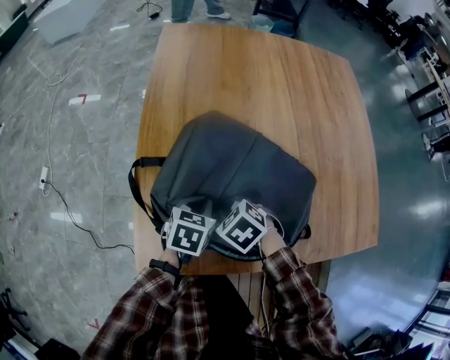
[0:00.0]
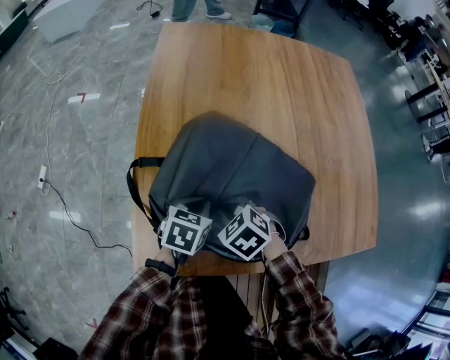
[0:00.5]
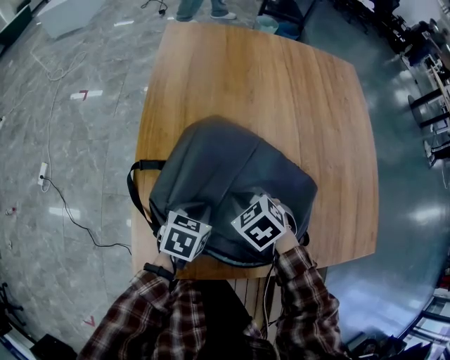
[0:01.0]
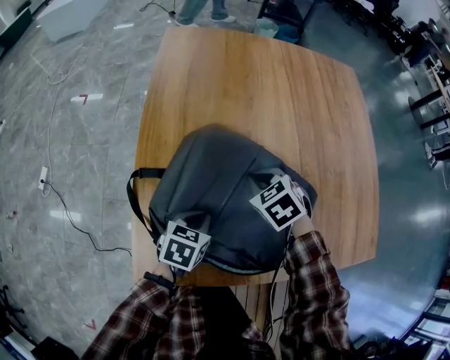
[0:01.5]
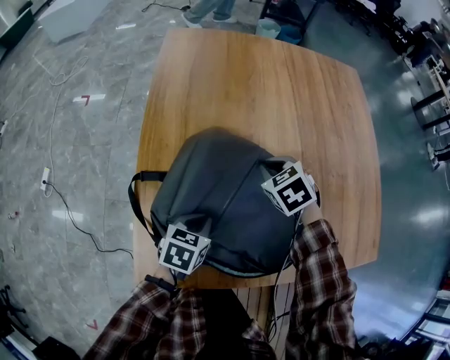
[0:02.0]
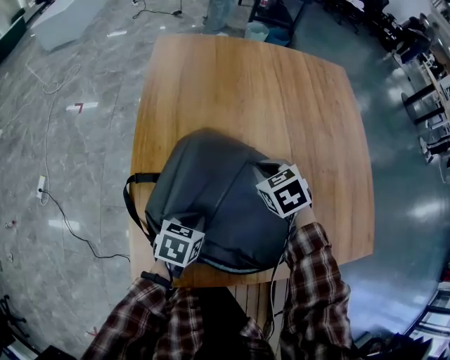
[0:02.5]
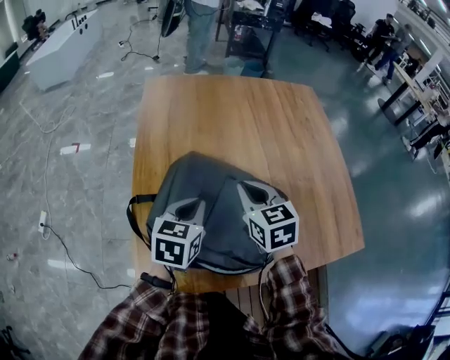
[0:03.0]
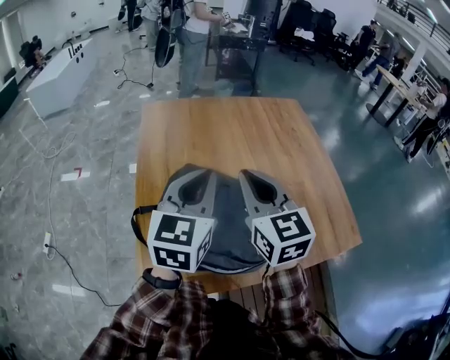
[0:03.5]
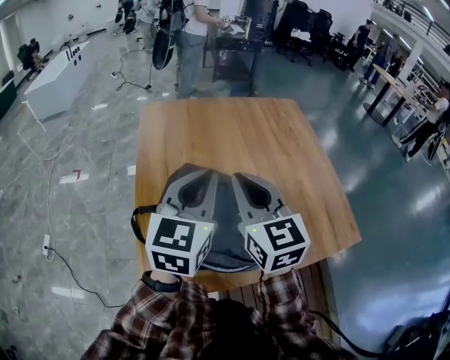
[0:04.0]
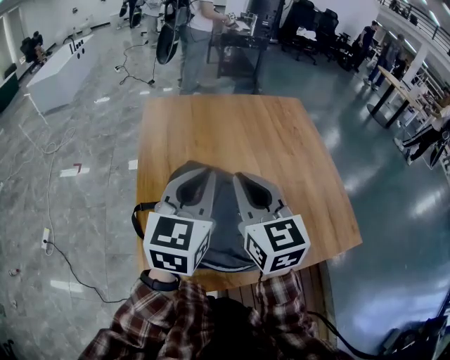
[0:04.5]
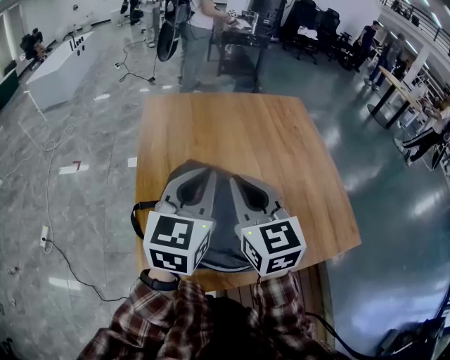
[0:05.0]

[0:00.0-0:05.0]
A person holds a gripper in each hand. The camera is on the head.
0:00.0 to 0:02.5: The right gripper moves forward, to the right and upward, some 20 cm, and swivels some 20 degrees.
0:02.5 to 0:05.0: The right gripper heads upward and backward, covering approximately 30 cm, and tips its fingers upward by about 50 degrees; the left gripper goes about 35 cm upward, and tilts its fingers some 40 degrees upward.

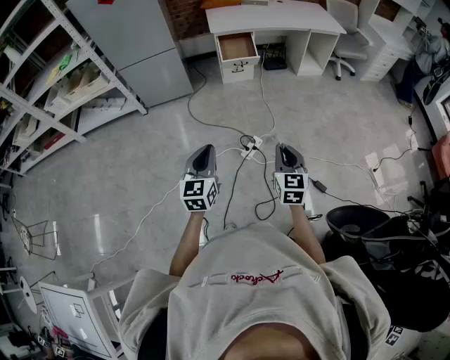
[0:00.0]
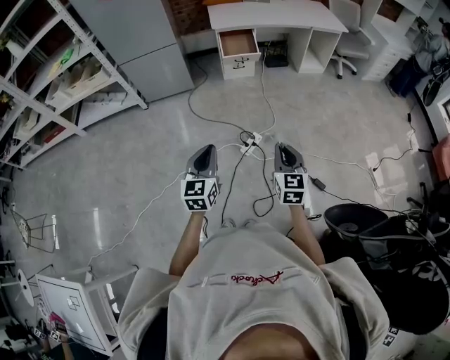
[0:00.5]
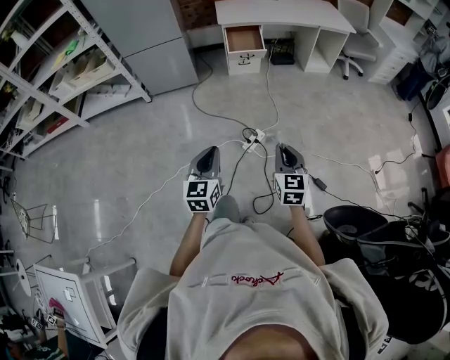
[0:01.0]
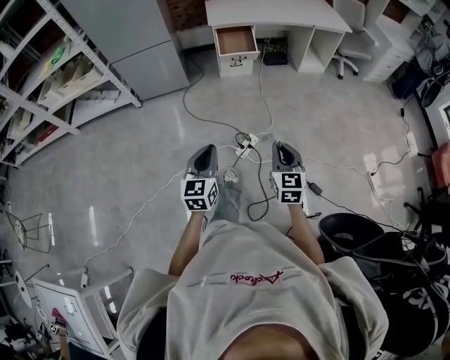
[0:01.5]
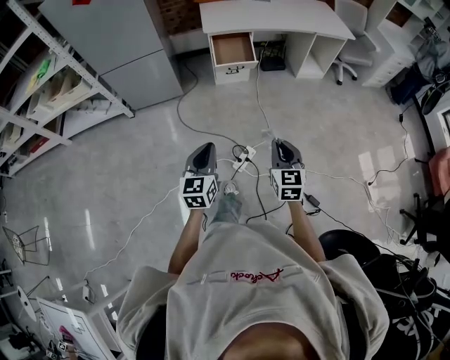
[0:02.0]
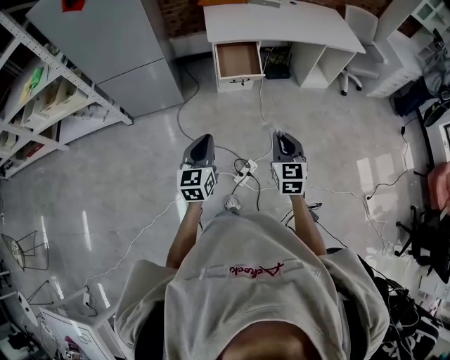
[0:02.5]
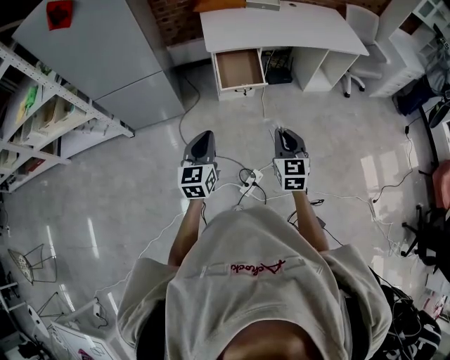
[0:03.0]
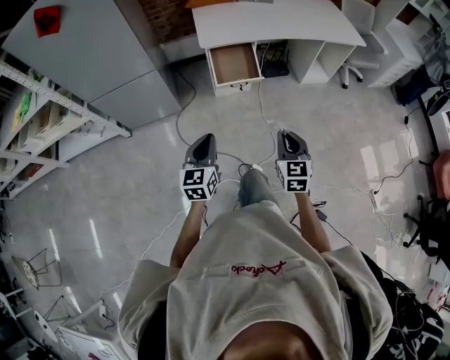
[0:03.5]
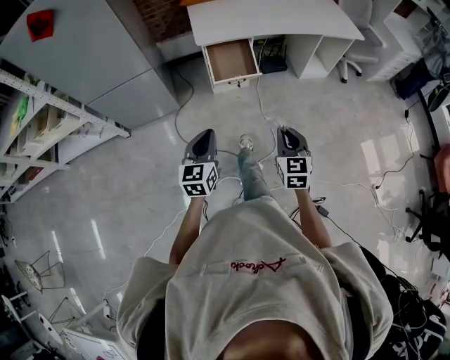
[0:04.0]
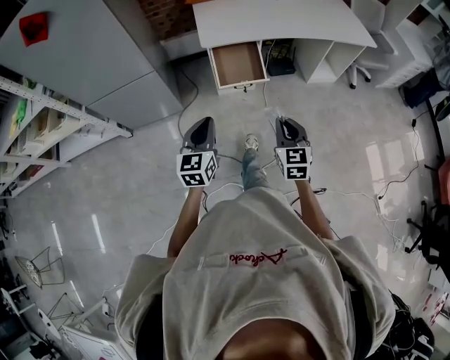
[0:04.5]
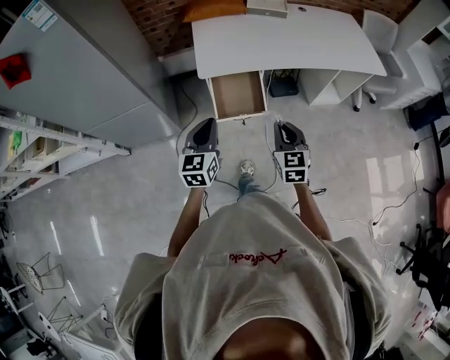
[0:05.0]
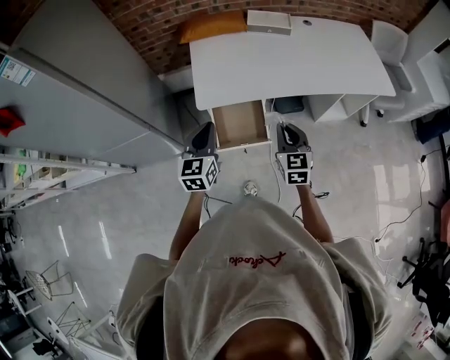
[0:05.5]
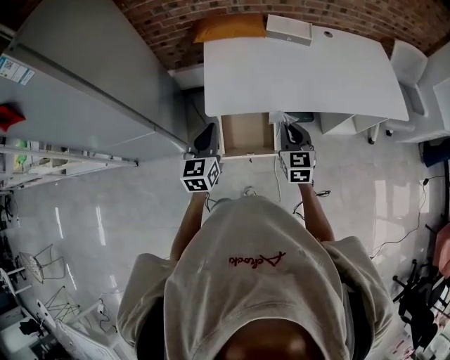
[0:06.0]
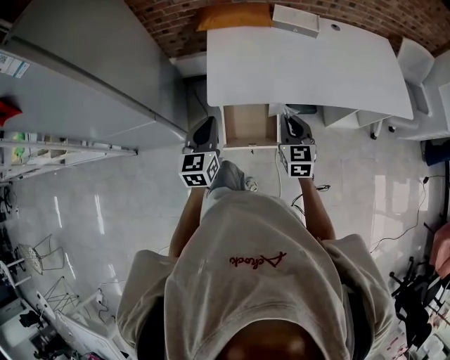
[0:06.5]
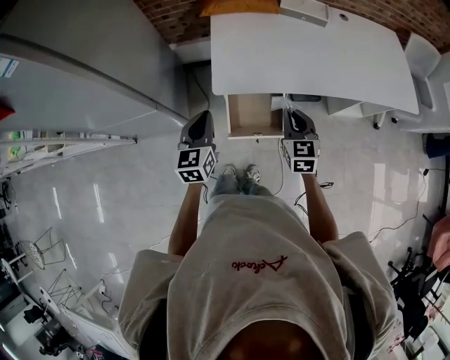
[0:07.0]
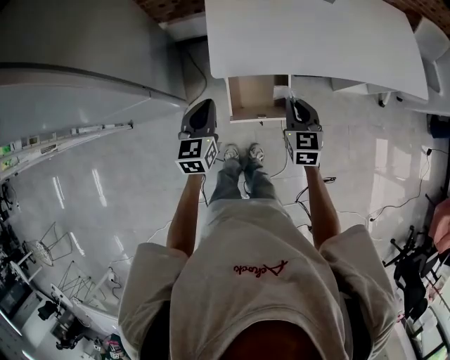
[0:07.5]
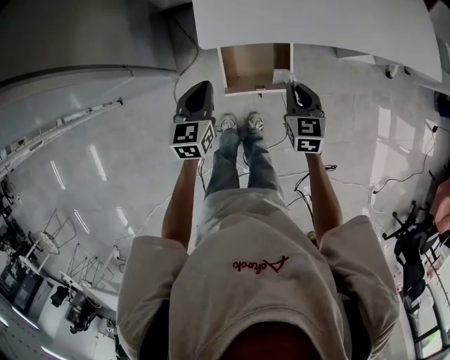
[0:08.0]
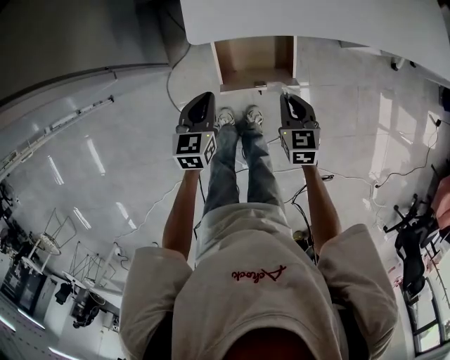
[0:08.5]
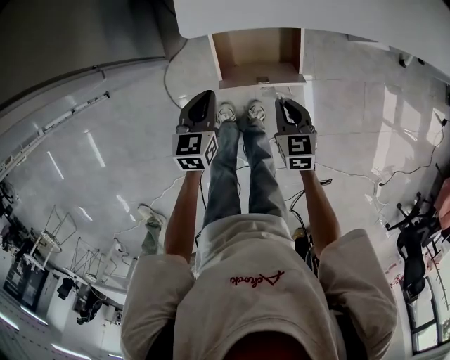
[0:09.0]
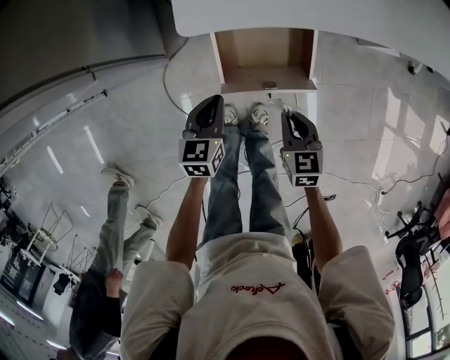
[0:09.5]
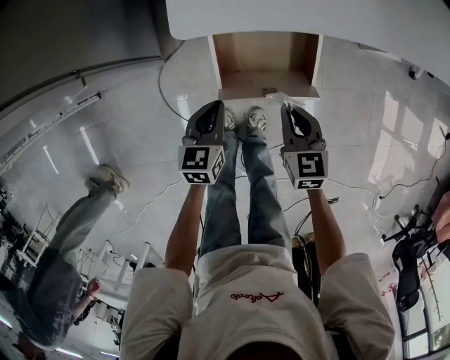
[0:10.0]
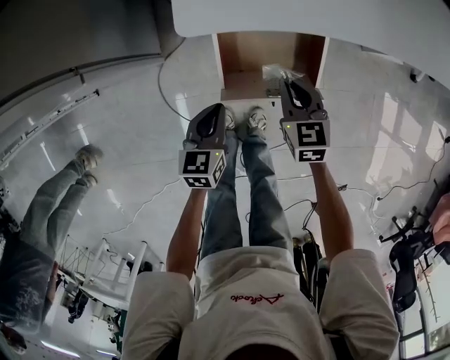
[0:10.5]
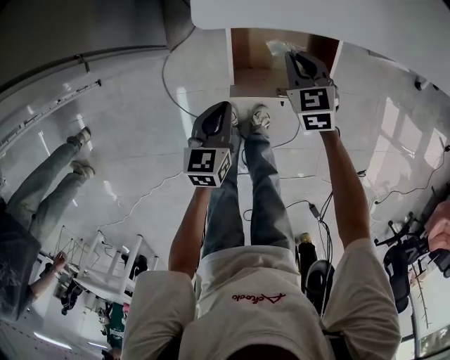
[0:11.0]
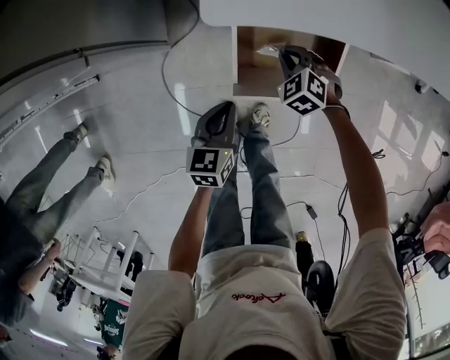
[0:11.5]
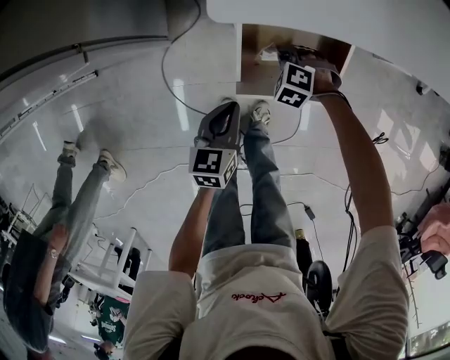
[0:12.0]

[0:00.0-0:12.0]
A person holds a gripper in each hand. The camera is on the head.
0:00.0 to 0:02.0: The two grippers go approximately 20 cm forward.
0:02.0 to 0:04.0: Both grippers travel together forward, approximately 25 cm.
0:04.0 to 0:06.0: The pair of grippers is taken forward, approximately 50 cm.
0:06.0 to 0:08.0: The two grippers go some 15 cm downward.
0:08.0 to 0:10.0: The grippers both shift downward by about 20 cm.
0:10.0 to 0:12.0: The right gripper shifts approximately 20 cm downward and forward, and rotates around the line of its fingers by approximately 70 degrees, counterclockwise from behind.

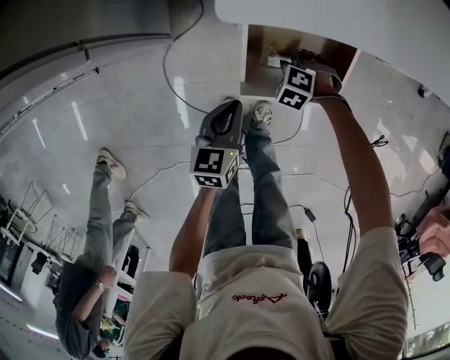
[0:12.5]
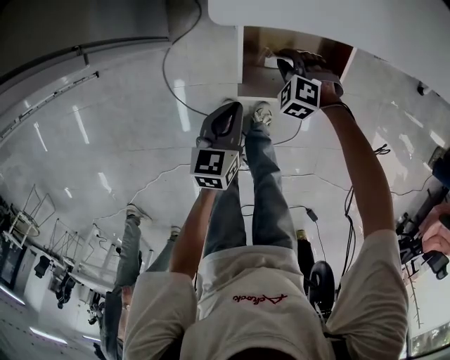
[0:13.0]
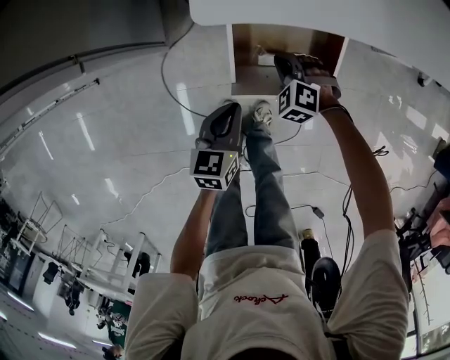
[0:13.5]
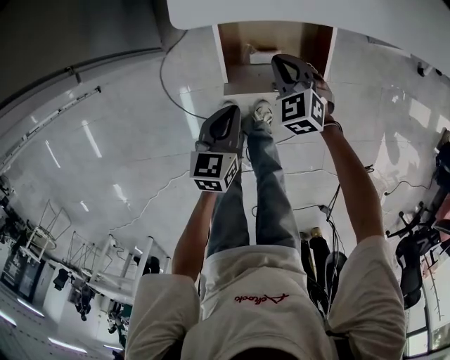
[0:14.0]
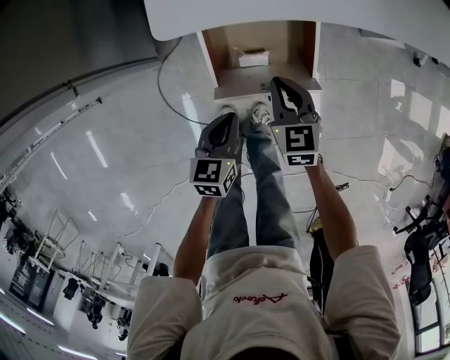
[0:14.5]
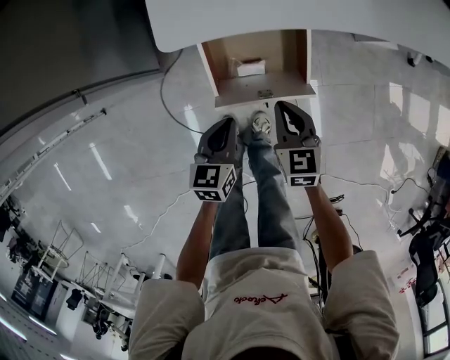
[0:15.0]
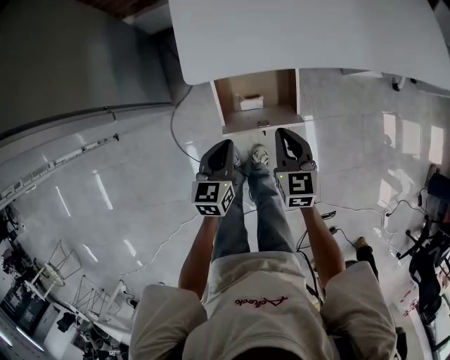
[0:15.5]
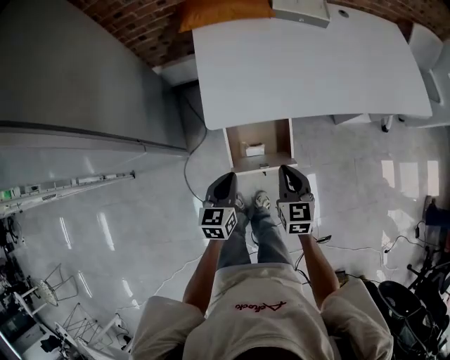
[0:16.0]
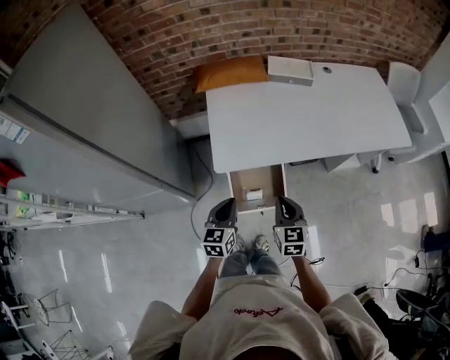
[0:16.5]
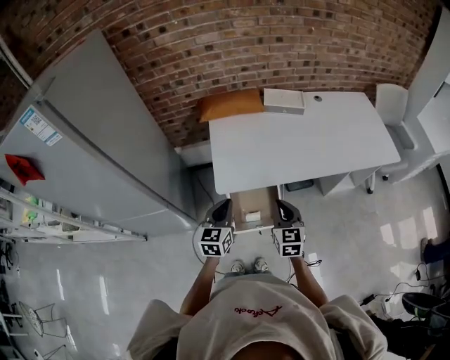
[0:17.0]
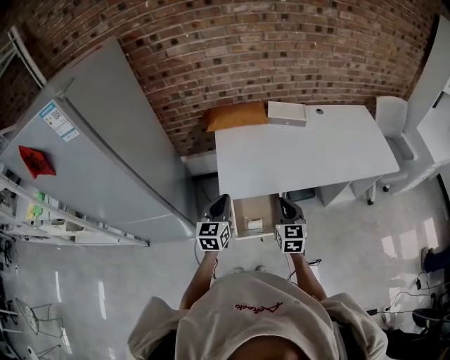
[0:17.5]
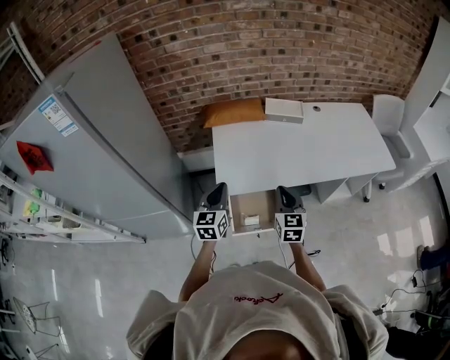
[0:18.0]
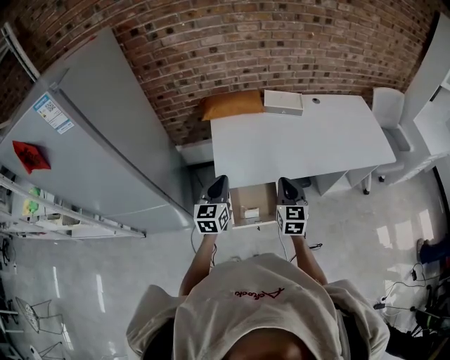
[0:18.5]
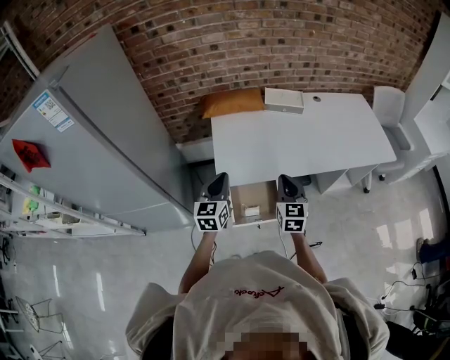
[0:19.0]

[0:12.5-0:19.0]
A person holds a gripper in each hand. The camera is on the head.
0:12.5 to 0:14.5: The left gripper ends up about 5 cm from where it was; the right gripper goes roughly 15 cm upward, and rolls clockwise, seen from behind, by about 60 degrees.
0:14.5 to 0:17.0: The two grippers go some 35 cm upward. The left gripper changes its angle by roughly 30 degrees. The right gripper rotates approximately 20 degrees.
0:17.0 to 0:19.0: Both grippers move upward, roughly 5 cm.

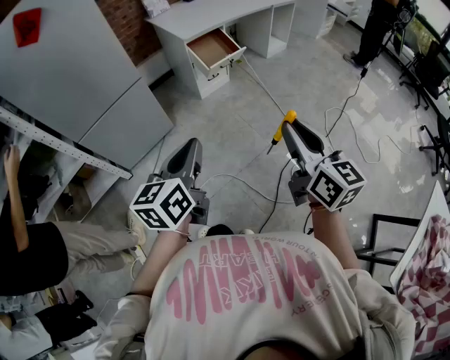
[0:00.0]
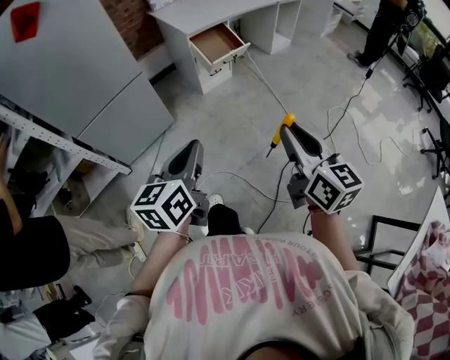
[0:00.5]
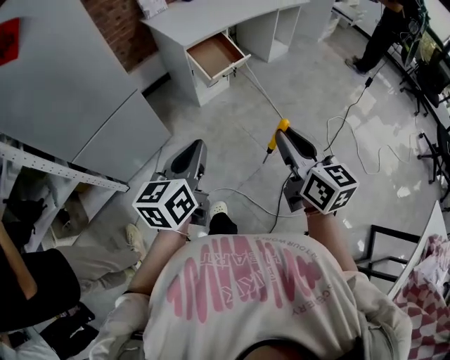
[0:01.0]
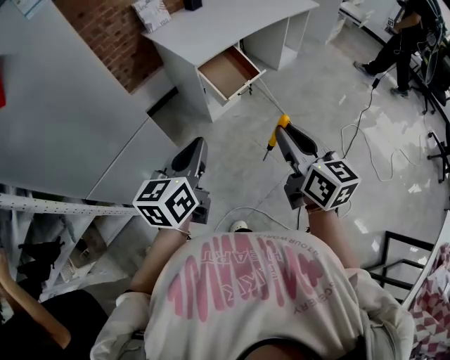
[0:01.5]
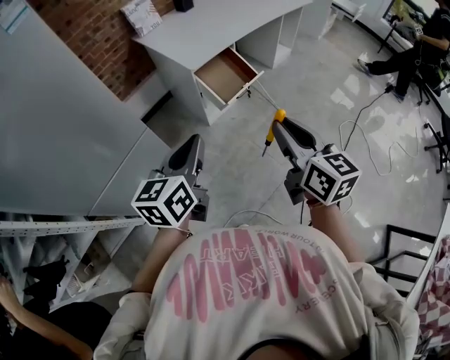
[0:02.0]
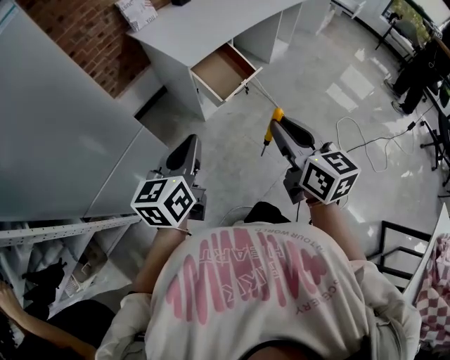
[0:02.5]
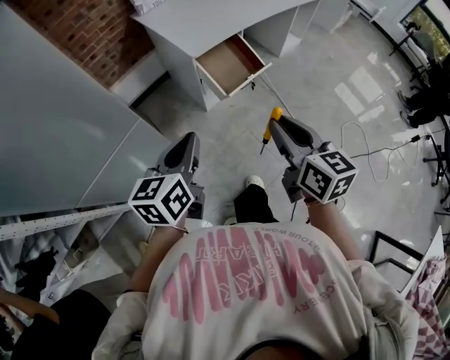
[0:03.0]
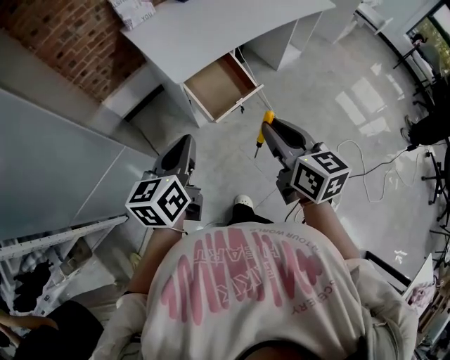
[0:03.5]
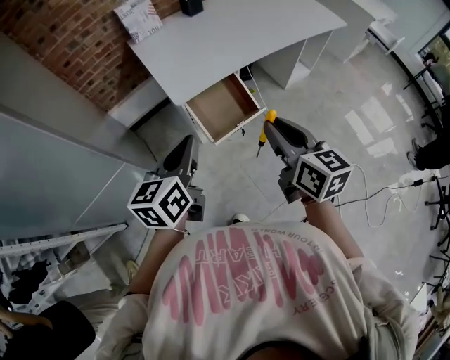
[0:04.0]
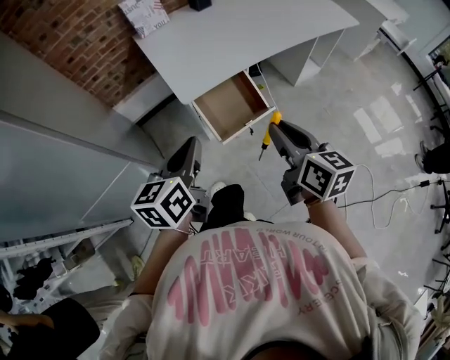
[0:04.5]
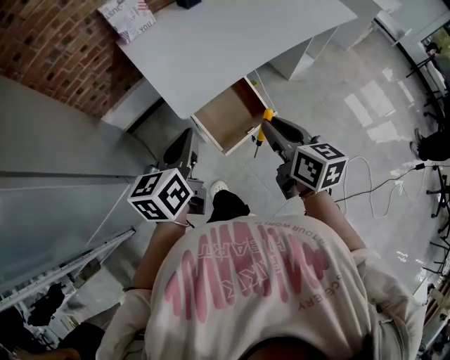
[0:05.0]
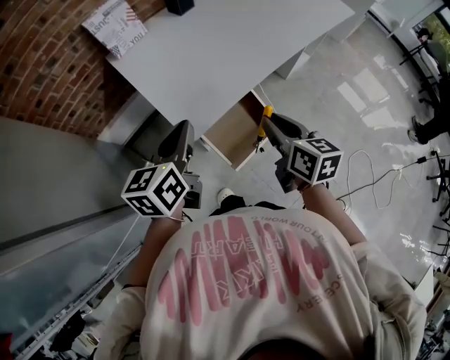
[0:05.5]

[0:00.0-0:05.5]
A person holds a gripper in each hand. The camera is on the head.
0:00.0 to 0:02.0: The left gripper shifts about 35 cm forward. Meanwhile the right gripper is displaced forward and to the left by about 35 cm.
0:02.0 to 0:03.5: Both grippers move forward, approximately 20 cm.
0:03.5 to 0:05.5: The two grippers go approximately 30 cm forward.
